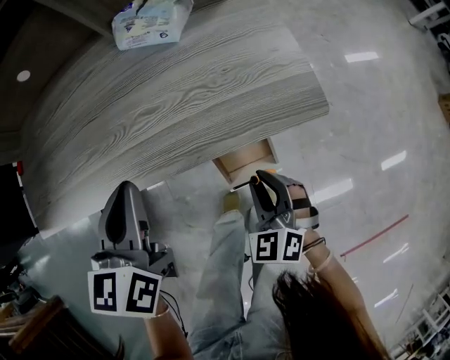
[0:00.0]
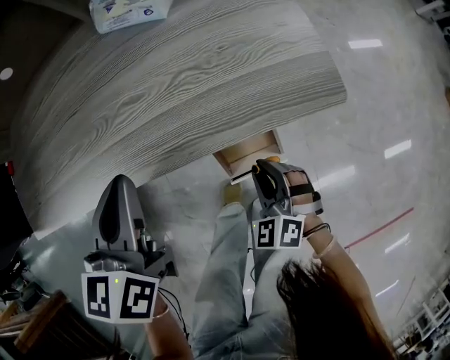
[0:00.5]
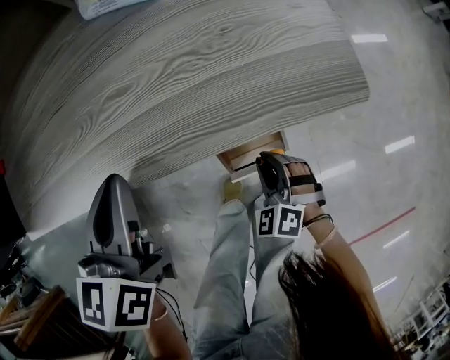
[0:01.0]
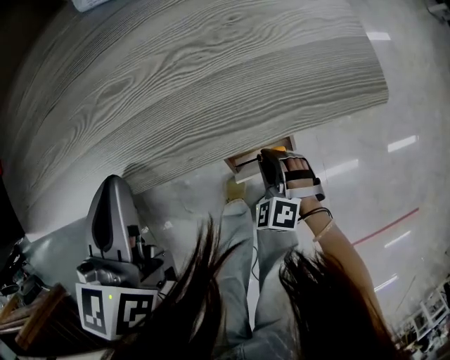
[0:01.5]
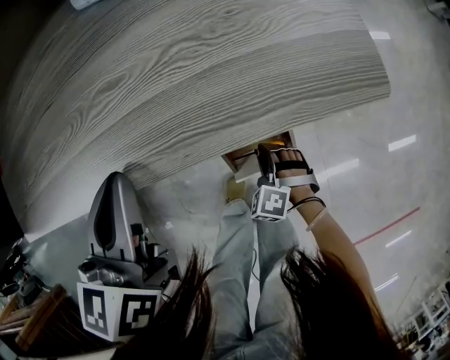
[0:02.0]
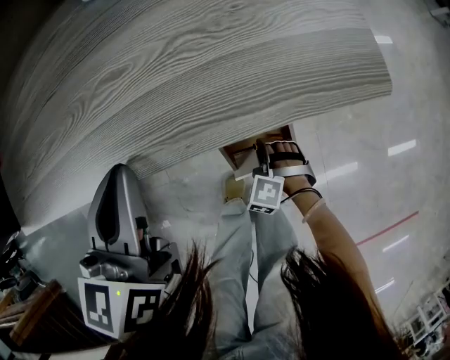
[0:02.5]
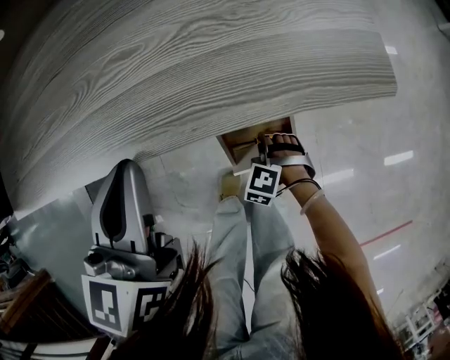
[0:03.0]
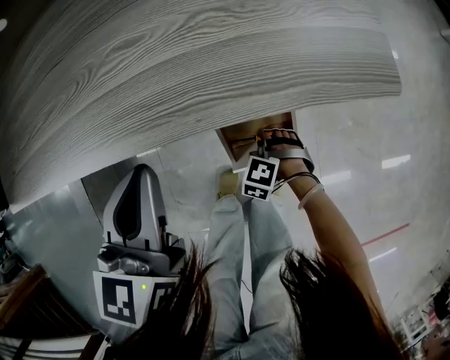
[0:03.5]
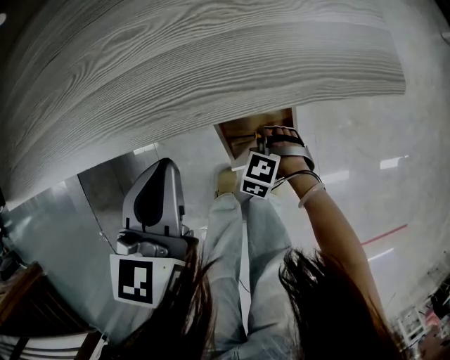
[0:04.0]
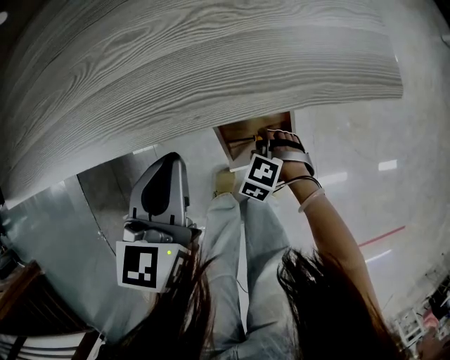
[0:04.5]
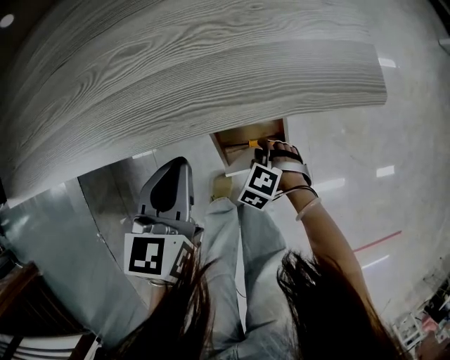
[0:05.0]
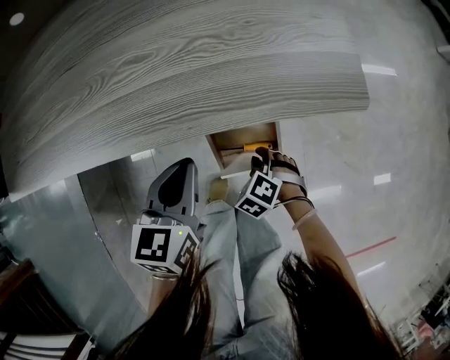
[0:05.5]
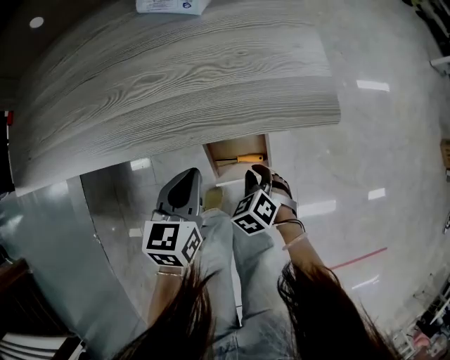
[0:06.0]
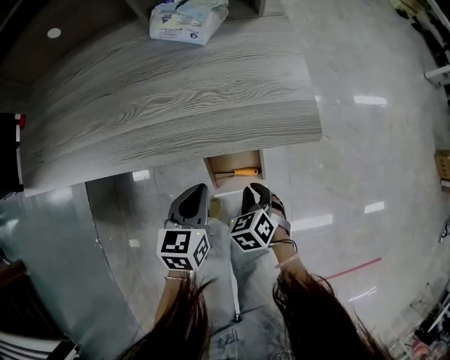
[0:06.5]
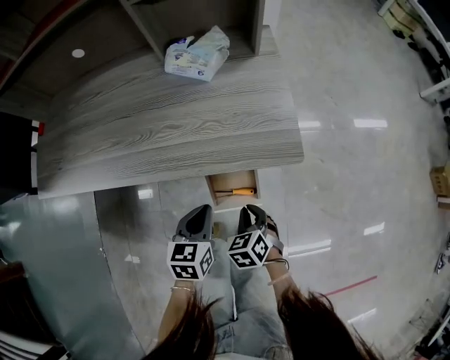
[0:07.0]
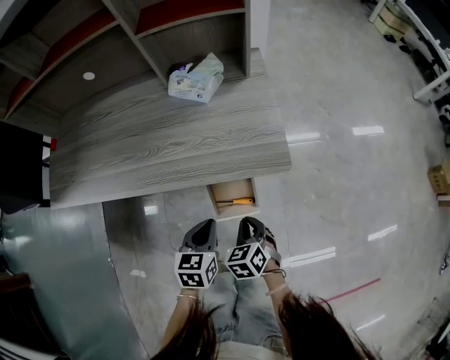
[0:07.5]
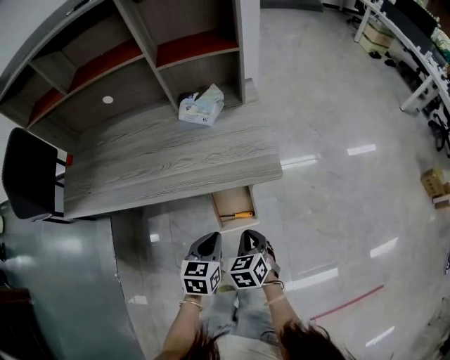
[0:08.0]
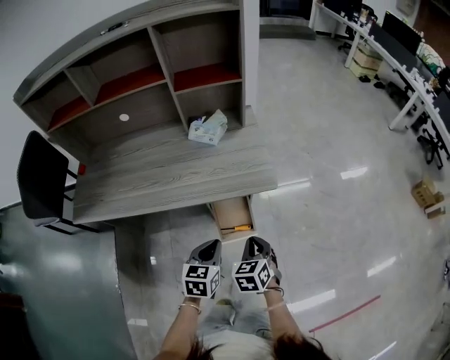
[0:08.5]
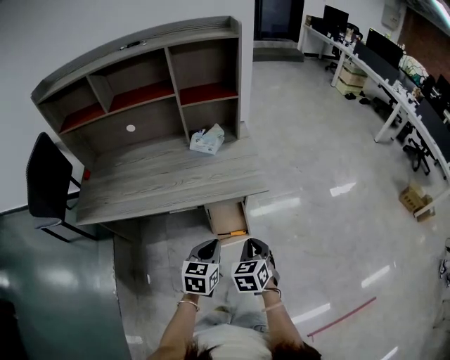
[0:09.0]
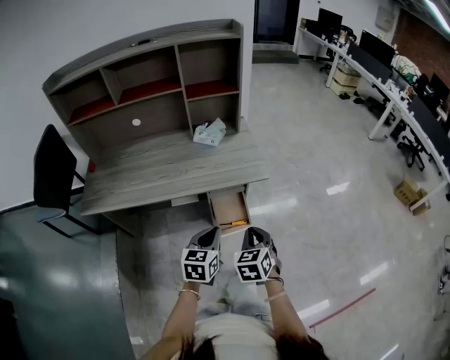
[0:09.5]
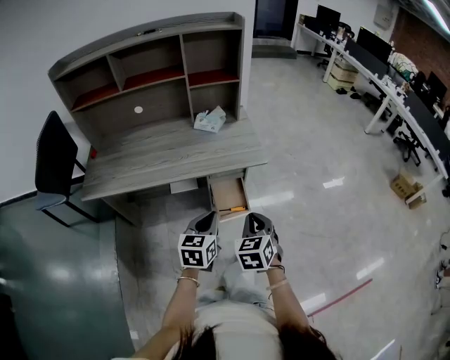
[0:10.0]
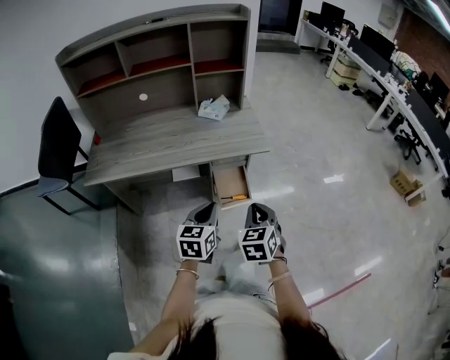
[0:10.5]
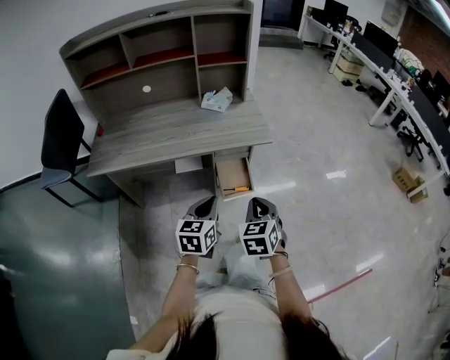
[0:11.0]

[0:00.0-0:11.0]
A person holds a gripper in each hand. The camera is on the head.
0:00.0 to 0:02.0: The right gripper goes about 25 cm downward, and changes its angle by approximately 30 degrees. The left gripper shifts about 10 cm downward.
0:02.0 to 0:03.5: The left gripper ends up roughly 5 cm from where it was.
0:03.5 to 0:05.5: The left gripper shifts approximately 10 cm downward and to the right, while the right gripper ends up roughly 5 cm from where it was.
0:05.5 to 0:07.5: The left gripper heads upward, to the right and backward, covering about 10 cm, while the right gripper travels upward by about 25 cm, and turns by about 40 degrees.
0:07.5 to 0:09.0: Both grippers move upward and backward, roughly 20 cm. The right gripper swivels approximately 20 degrees.
0:09.0 to 0:11.0: The right gripper goes about 15 cm backward and upward. The left gripper shifts about 15 cm backward.

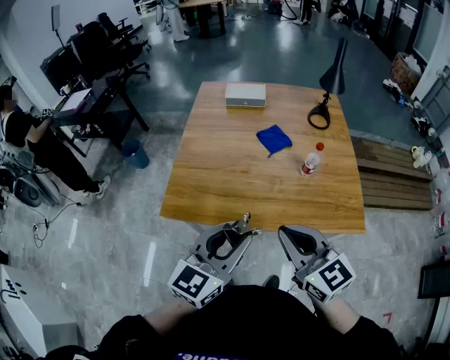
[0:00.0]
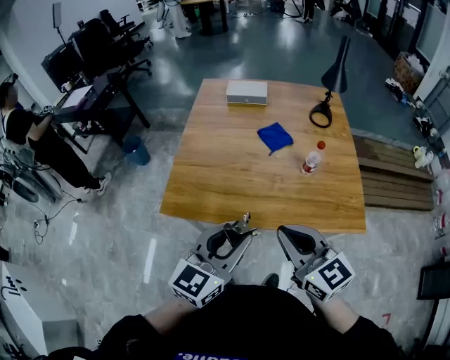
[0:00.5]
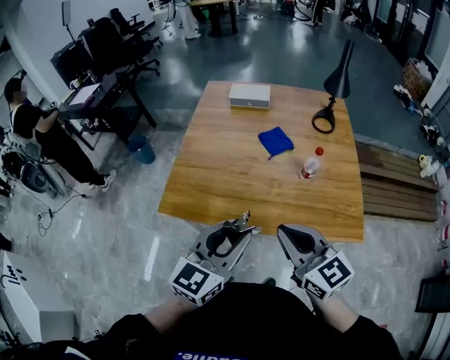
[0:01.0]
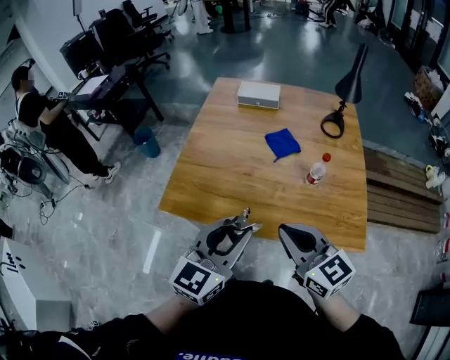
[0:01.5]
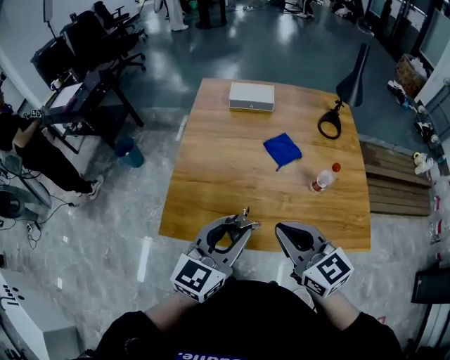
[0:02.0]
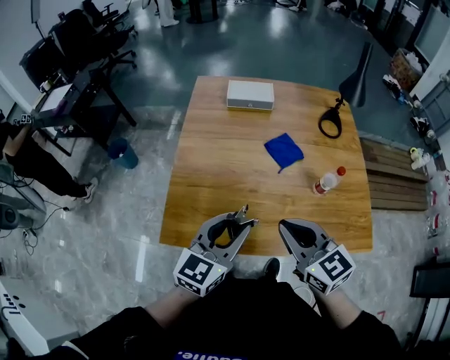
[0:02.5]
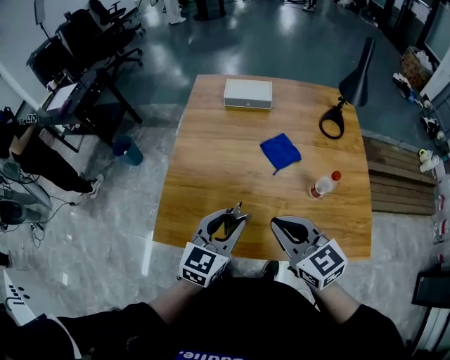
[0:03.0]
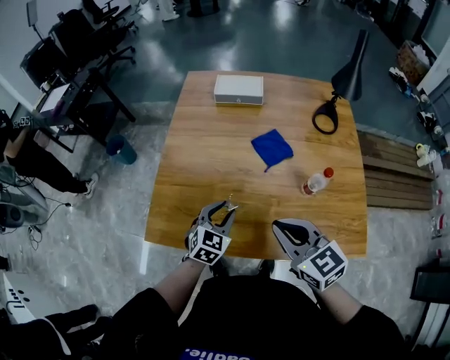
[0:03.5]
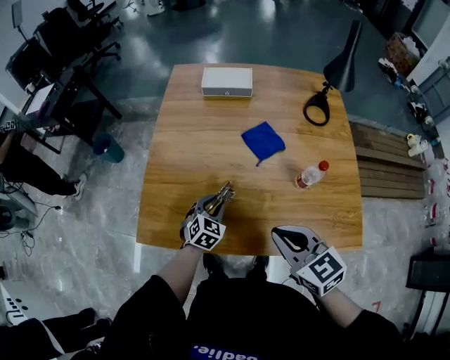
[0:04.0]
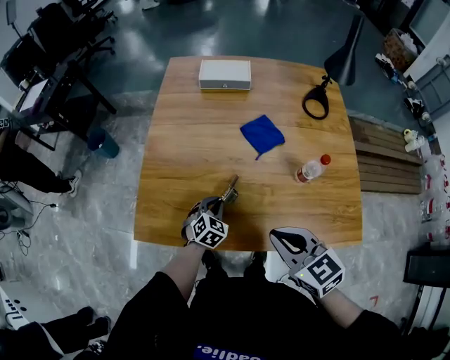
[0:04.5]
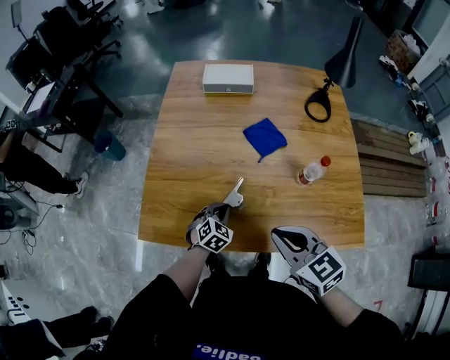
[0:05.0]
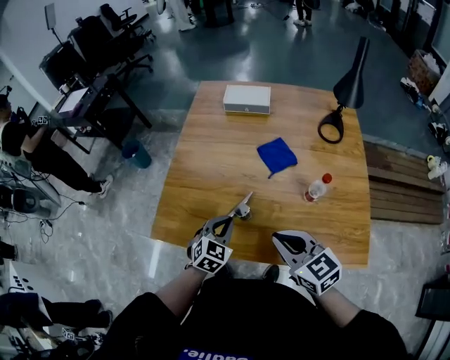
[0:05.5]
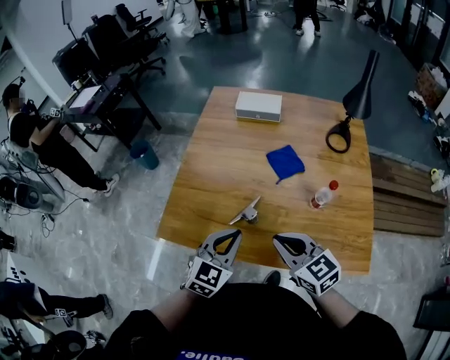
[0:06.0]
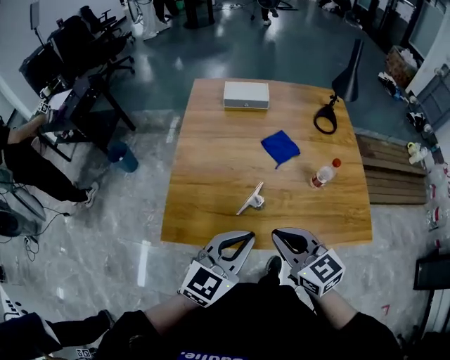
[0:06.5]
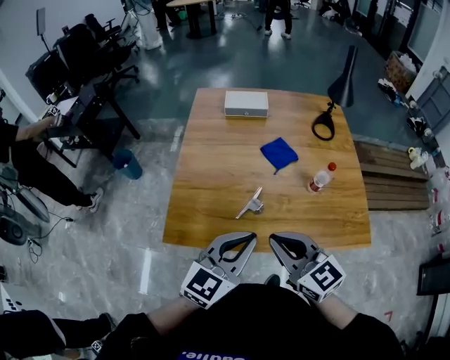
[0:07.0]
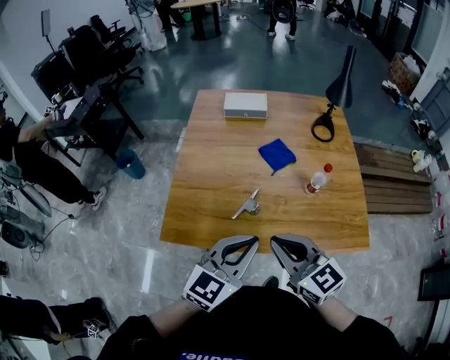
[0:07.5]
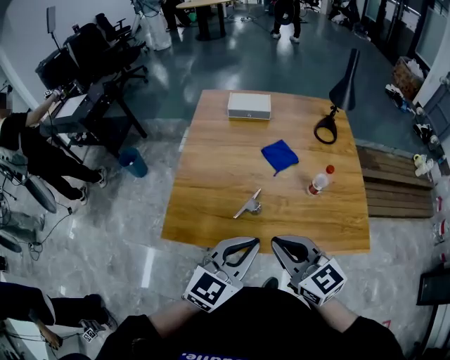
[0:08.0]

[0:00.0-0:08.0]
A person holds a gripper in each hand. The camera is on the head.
0:00.0 to 0:02.0: Both grippers travel together forward, about 15 cm.
0:02.0 to 0:04.0: The right gripper goes some 10 cm downward and to the right; the left gripper heads downward and forward, covering some 35 cm, and tilts its fingers about 40 degrees downward.
0:04.0 to 0:06.0: The left gripper moves upward and backward, approximately 25 cm, and closes its fingers.
0:06.0 to 0:08.0: The right gripper moves backward, upward and to the left, approximately 10 cm. The left gripper shifts roughly 15 cm upward and backward, and turns by some 20 degrees.

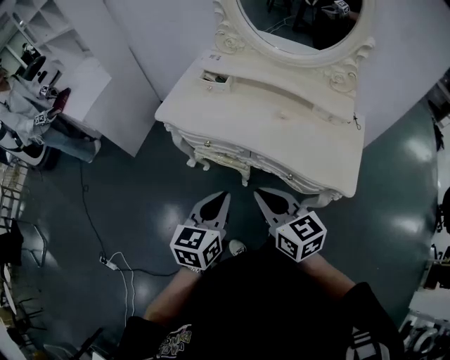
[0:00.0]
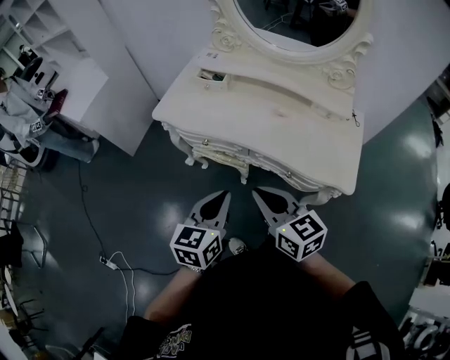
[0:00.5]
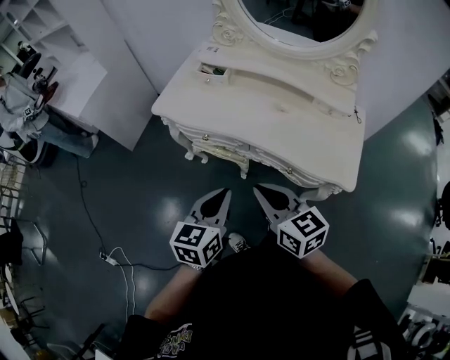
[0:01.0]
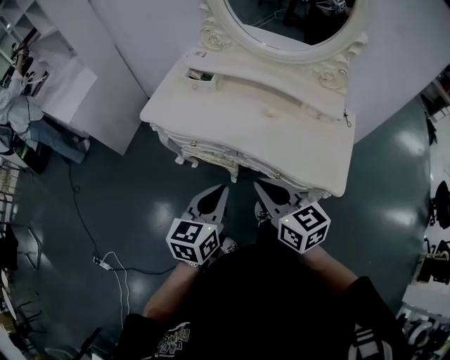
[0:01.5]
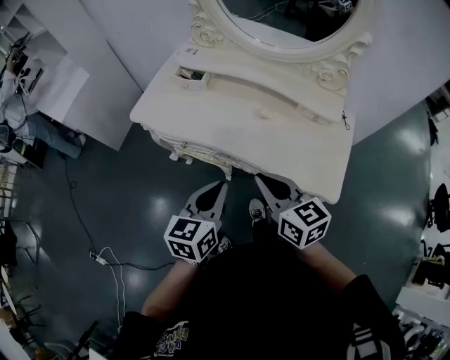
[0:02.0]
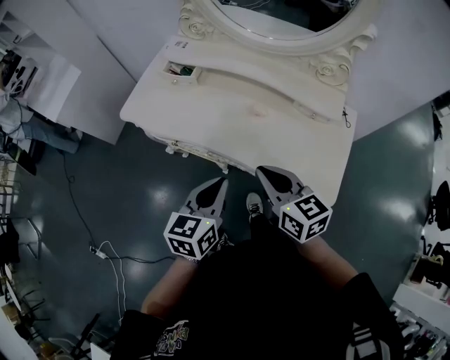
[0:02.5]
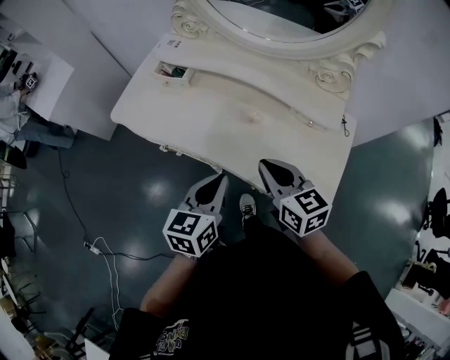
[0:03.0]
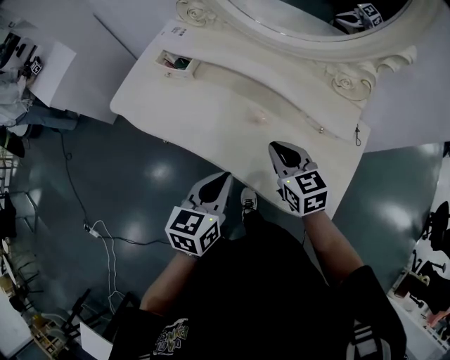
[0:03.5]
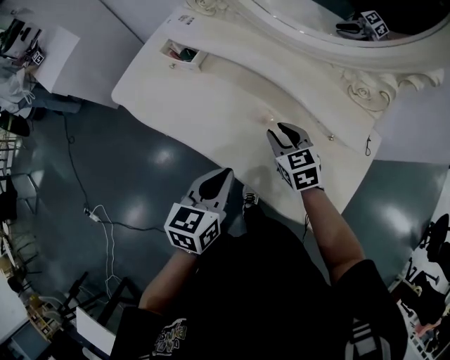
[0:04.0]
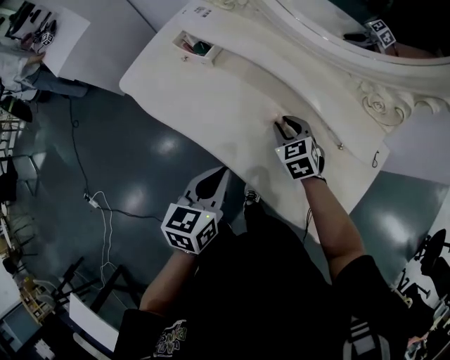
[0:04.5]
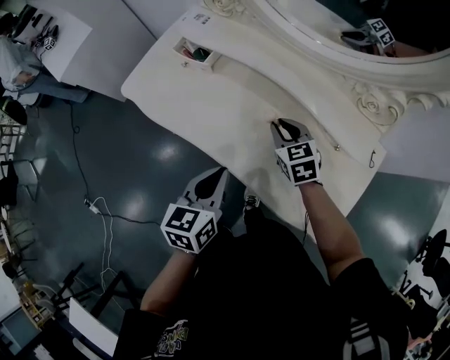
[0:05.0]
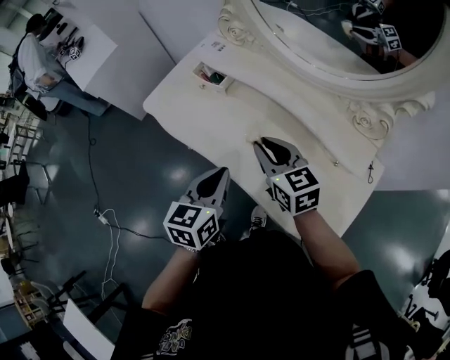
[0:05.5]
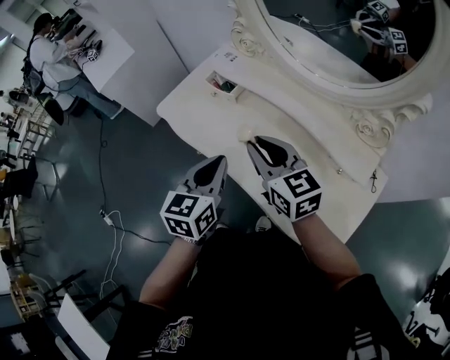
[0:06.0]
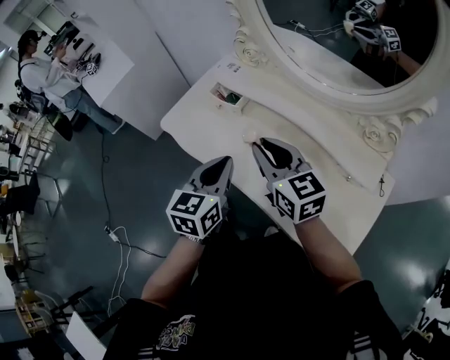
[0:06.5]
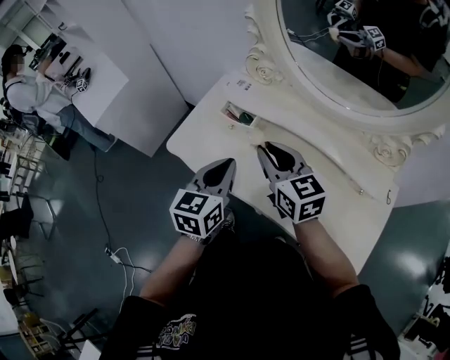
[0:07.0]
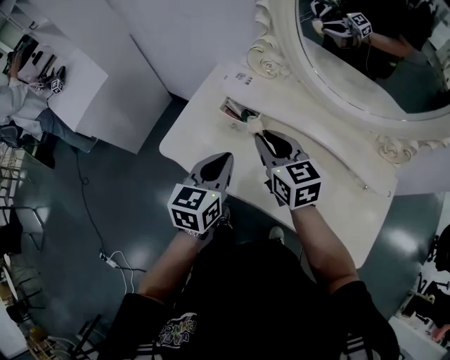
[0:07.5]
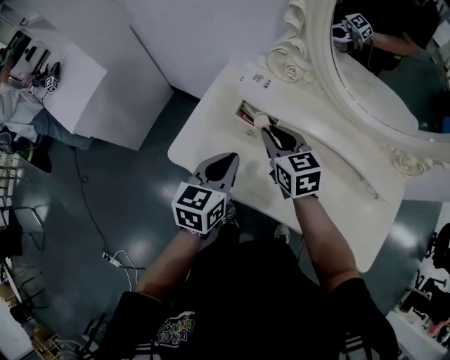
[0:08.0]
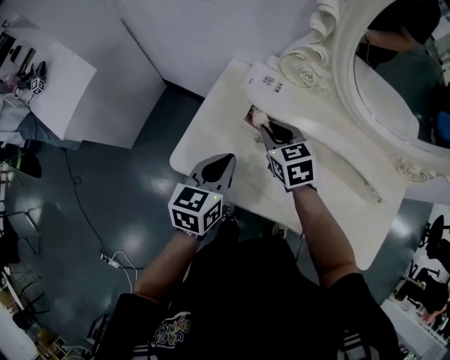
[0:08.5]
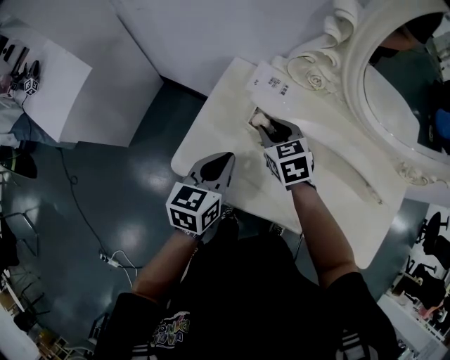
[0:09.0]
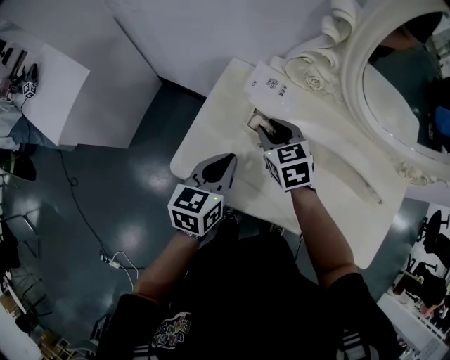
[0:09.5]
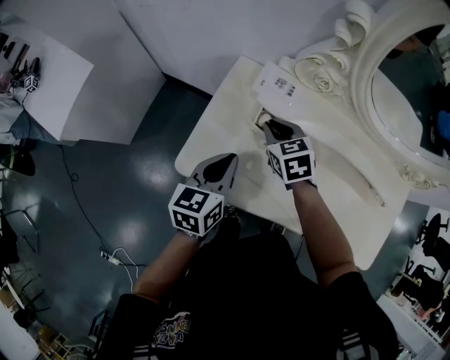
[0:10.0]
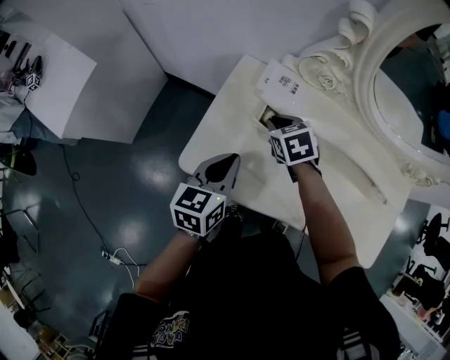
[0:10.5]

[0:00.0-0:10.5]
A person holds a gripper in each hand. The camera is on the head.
0:00.0 to 0:02.0: Both grippers move to the right and forward, roughly 10 cm.
0:02.0 to 0:04.0: The right gripper heads forward, downward and to the right, covering some 30 cm, swivels about 30 degrees, and opens, while the left gripper is displaced forward, to the right and downward by some 20 cm.
0:04.0 to 0:06.5: The left gripper is displaced upward, forward and to the left by some 15 cm, while the right gripper heads upward and to the left, covering approximately 25 cm, and changes its angle by approximately 30 degrees.
0:06.5 to 0:08.5: The two grippers go approximately 35 cm forward, to the left and downward. The right gripper swivels about 30 degrees.
0:08.5 to 0:10.5: The right gripper changes place by approximately 5 cm.
